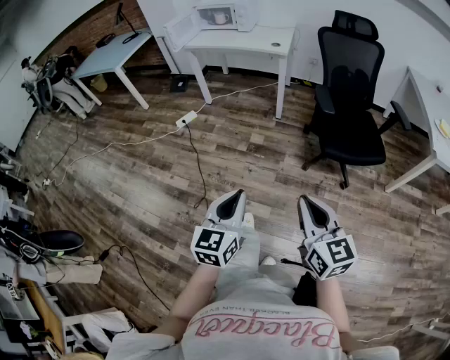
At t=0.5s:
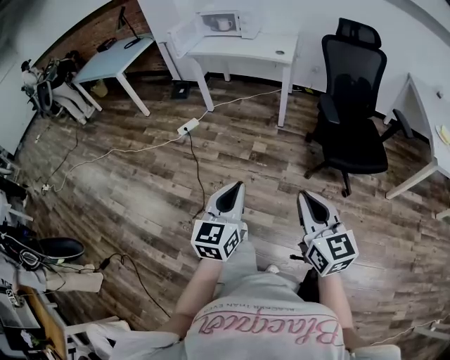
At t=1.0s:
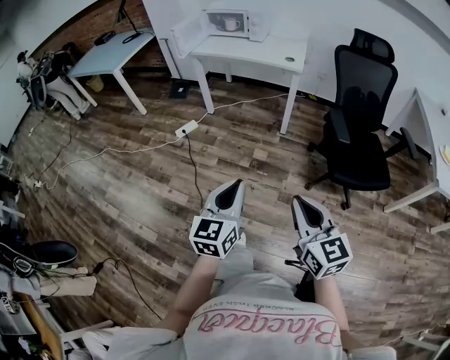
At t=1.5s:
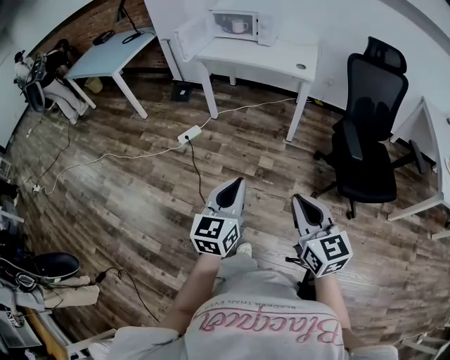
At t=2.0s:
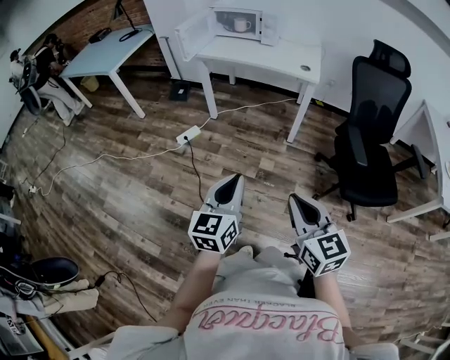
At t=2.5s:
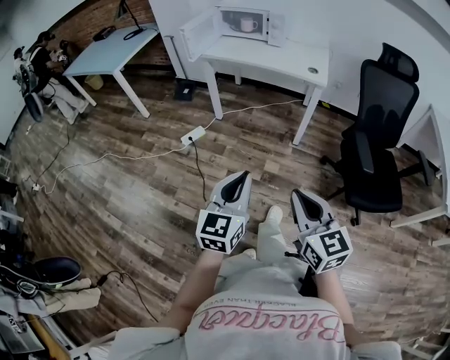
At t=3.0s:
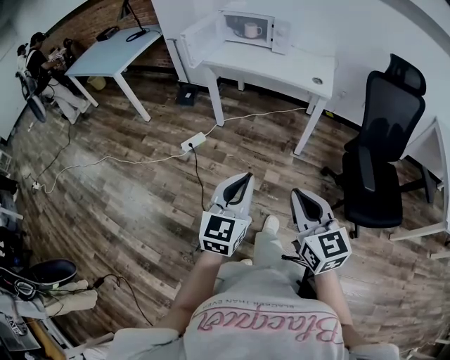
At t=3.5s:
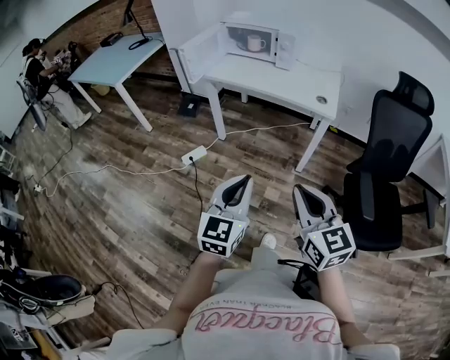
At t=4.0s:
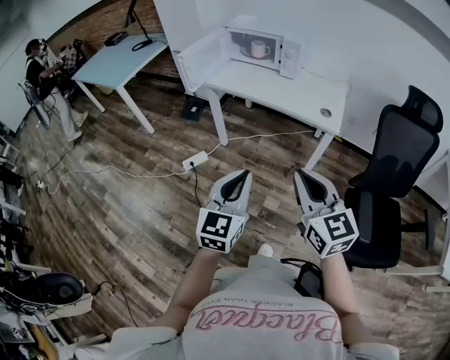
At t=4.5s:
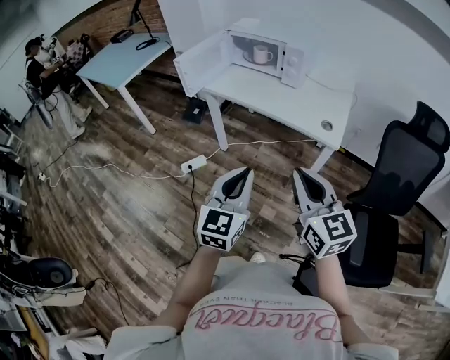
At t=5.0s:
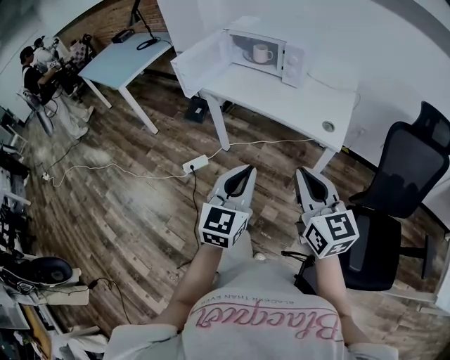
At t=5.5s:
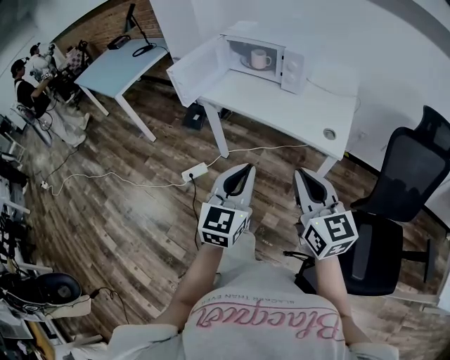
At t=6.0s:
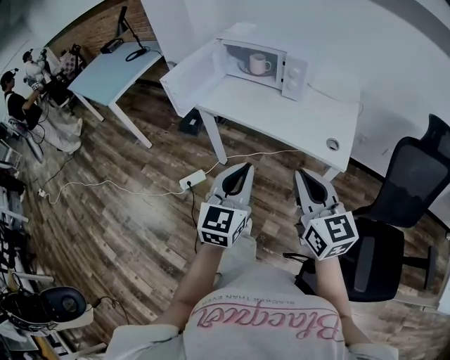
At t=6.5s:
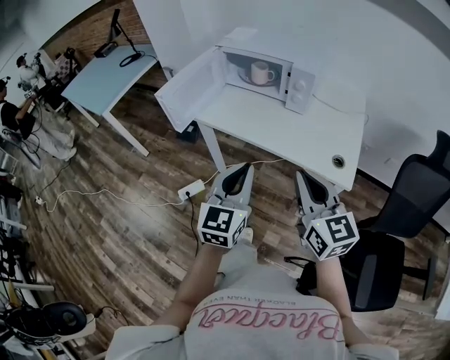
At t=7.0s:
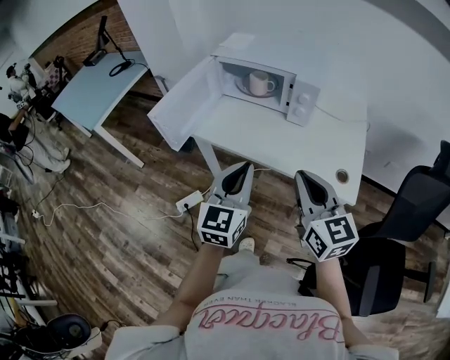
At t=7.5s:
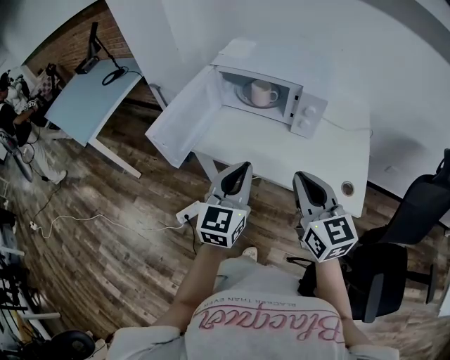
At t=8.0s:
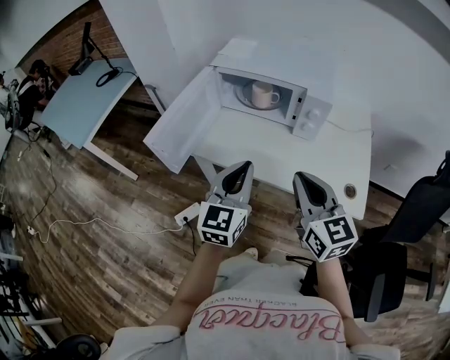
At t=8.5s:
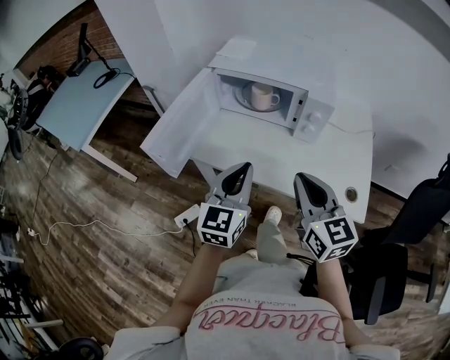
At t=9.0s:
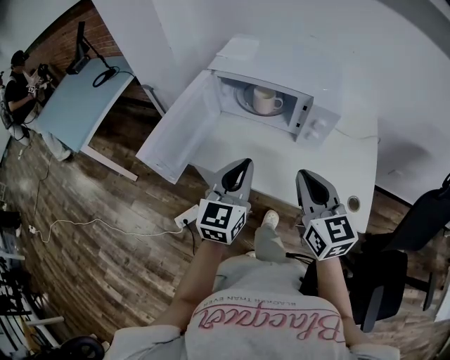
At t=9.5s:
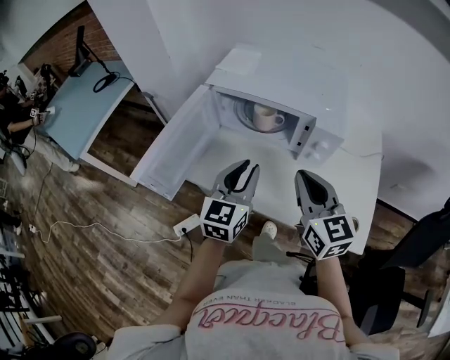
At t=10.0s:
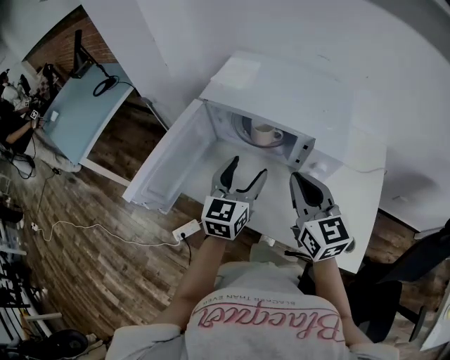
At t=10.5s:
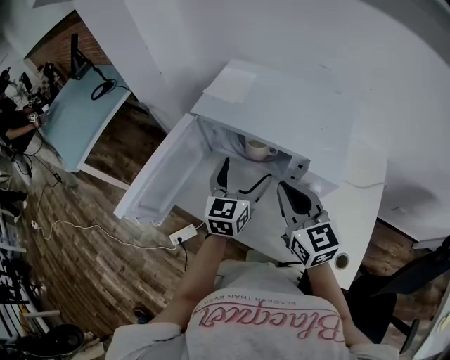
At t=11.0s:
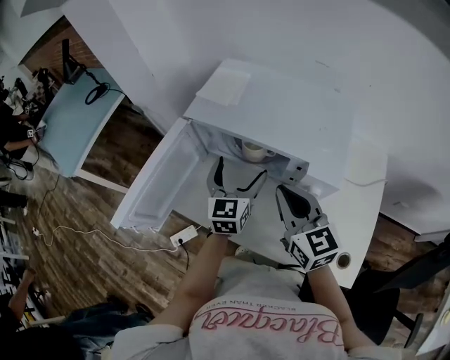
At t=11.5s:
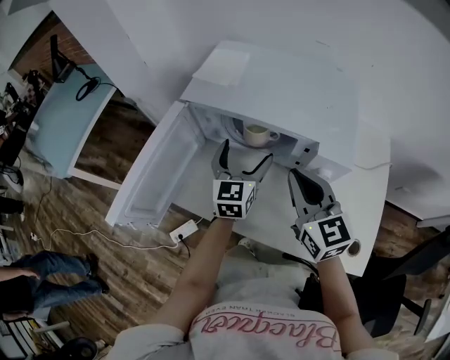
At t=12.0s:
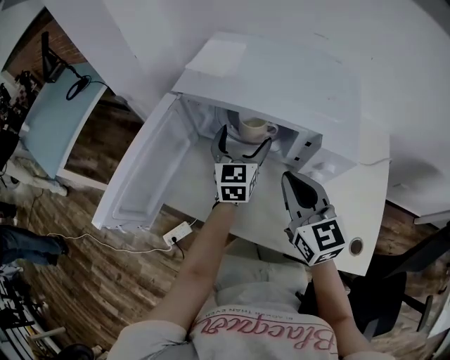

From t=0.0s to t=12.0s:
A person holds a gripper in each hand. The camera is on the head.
From t=0.0s to t=2.0s: The grippers both shift forward and to the left by approximately 35 cm.
From t=2.0s to t=4.0s: Both grippers move forward, about 30 cm.
From t=4.0s to t=6.0s: Both grippers move forward, approximately 20 cm.
From t=6.0s to t=8.0s: The two grippers go some 25 cm forward.
From t=8.0s to t=10.0s: Both grippers move forward, some 20 cm. The left gripper opens its fingers.
From t=10.0s to t=12.0s: The right gripper heads downward, covering about 5 cm; the left gripper shifts some 15 cm forward and downward, and opens its fingers.

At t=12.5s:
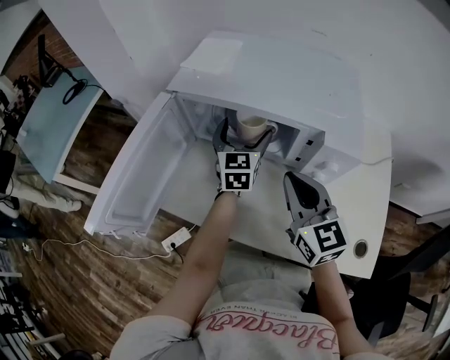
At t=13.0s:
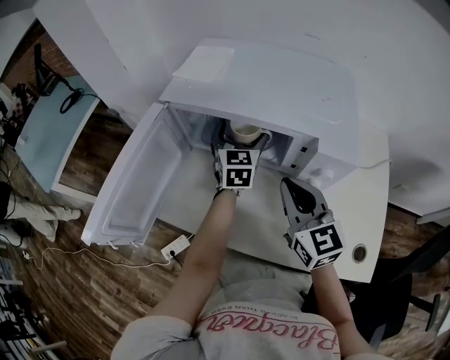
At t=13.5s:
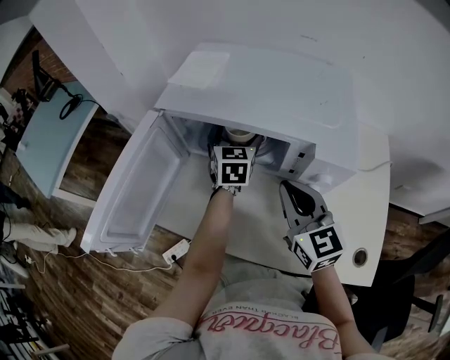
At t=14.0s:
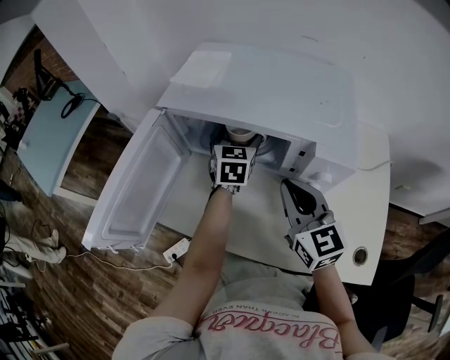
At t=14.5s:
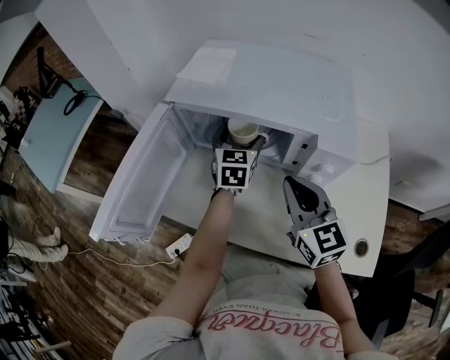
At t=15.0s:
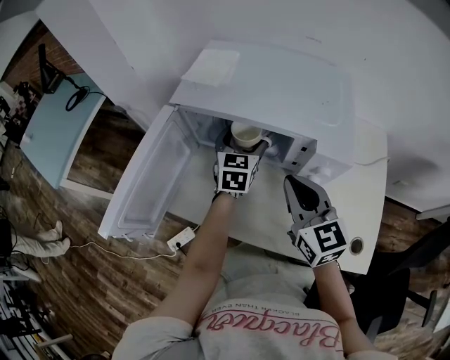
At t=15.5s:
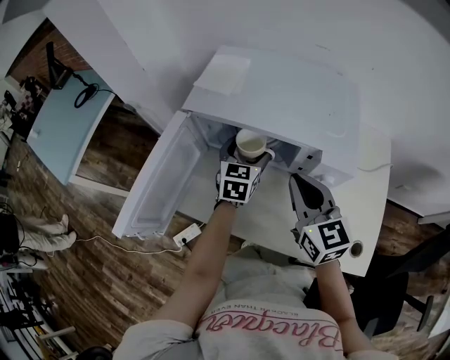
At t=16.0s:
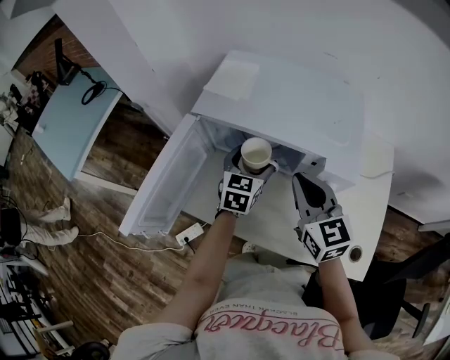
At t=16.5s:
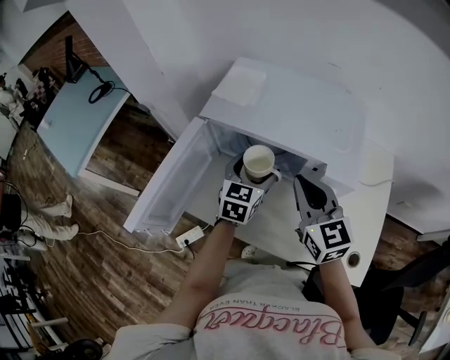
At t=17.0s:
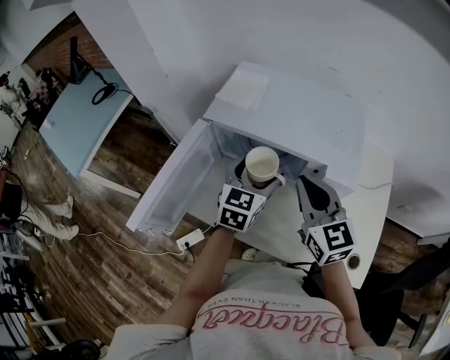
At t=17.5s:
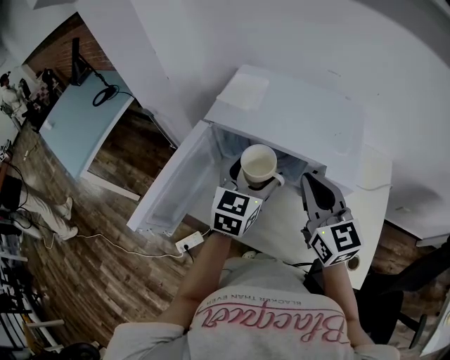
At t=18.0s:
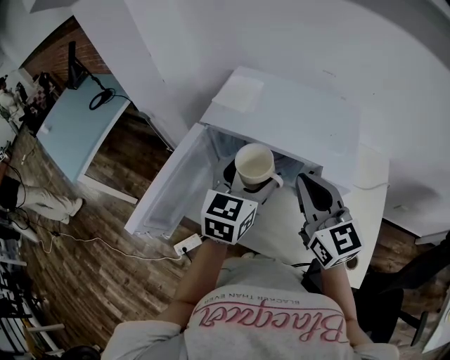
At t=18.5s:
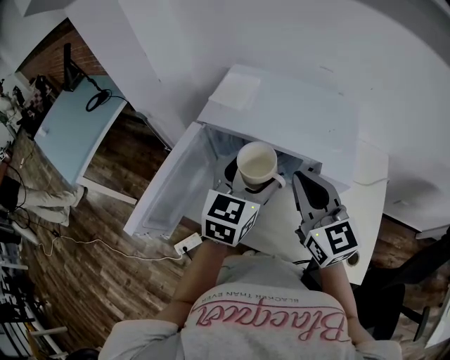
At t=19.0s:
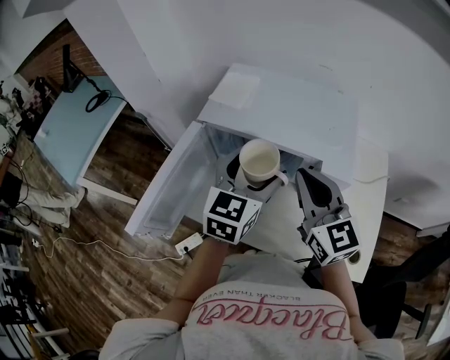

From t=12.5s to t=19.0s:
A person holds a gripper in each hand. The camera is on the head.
From t=12.5s to t=14.5s: The grippers make only small movements.
From t=14.5s to t=17.0s: The right gripper heads upward, covering approximately 10 cm; the left gripper is displaced backward and upward by roughly 15 cm.
From t=17.0s to t=19.0s: The left gripper goes approximately 10 cm upward.

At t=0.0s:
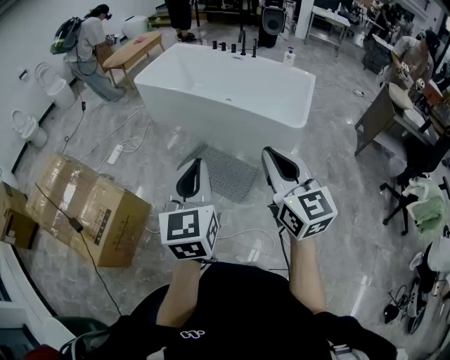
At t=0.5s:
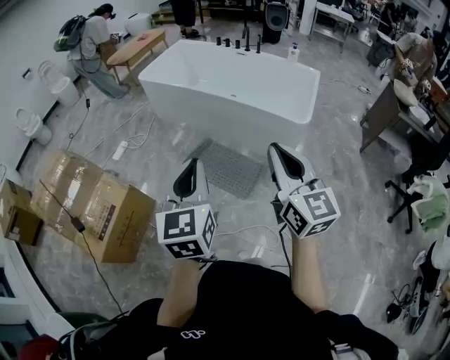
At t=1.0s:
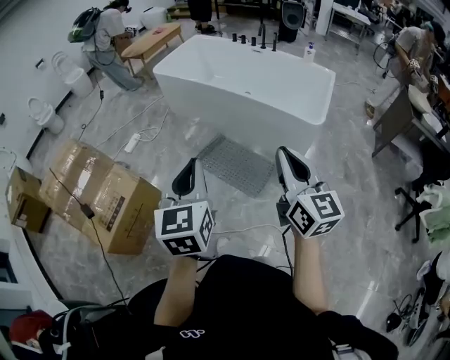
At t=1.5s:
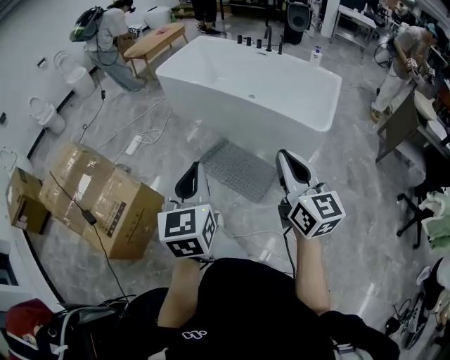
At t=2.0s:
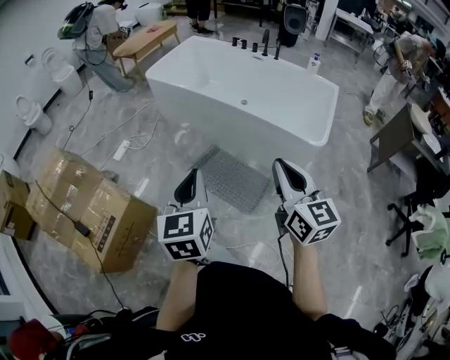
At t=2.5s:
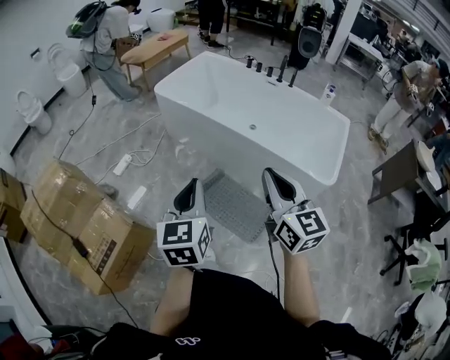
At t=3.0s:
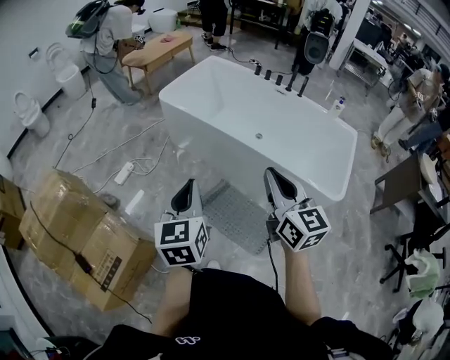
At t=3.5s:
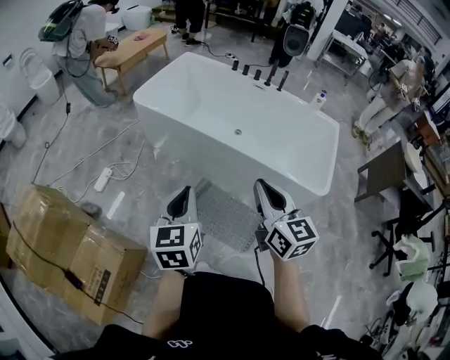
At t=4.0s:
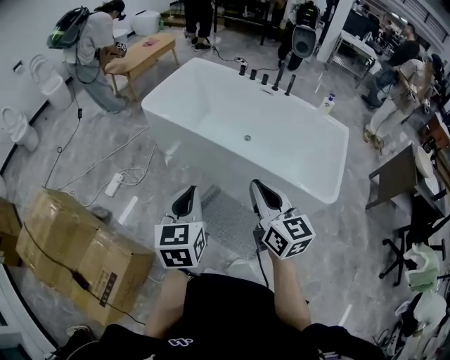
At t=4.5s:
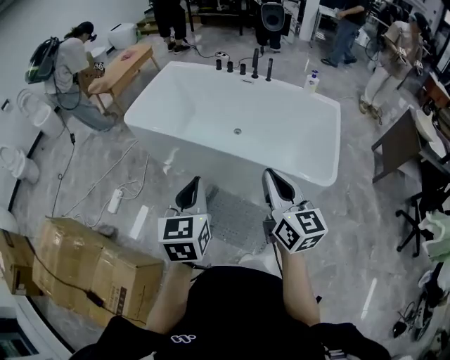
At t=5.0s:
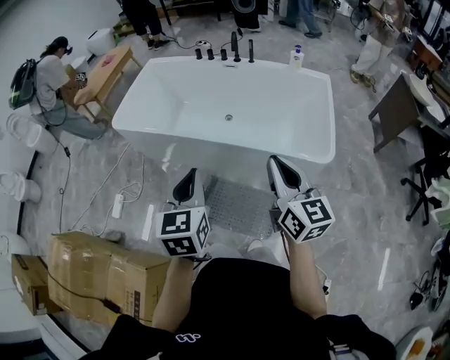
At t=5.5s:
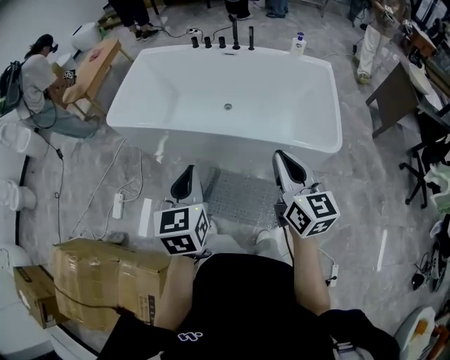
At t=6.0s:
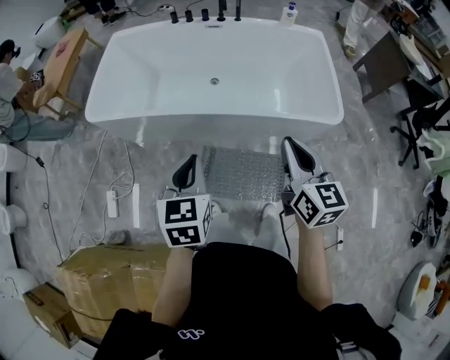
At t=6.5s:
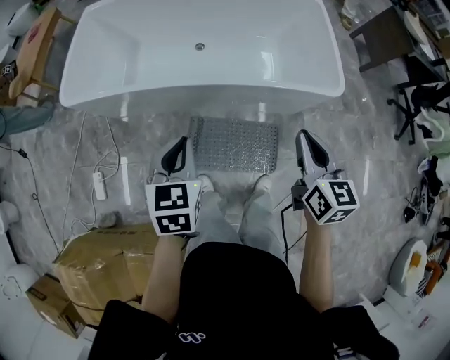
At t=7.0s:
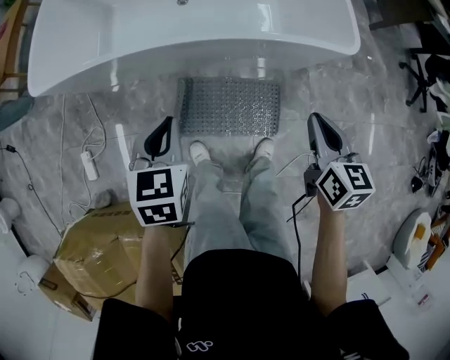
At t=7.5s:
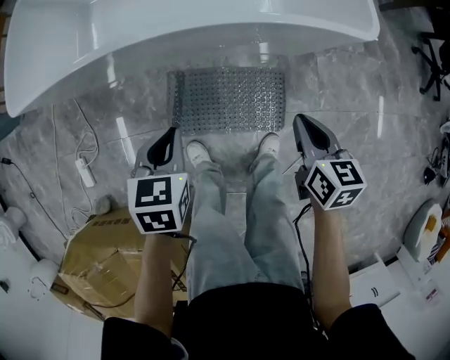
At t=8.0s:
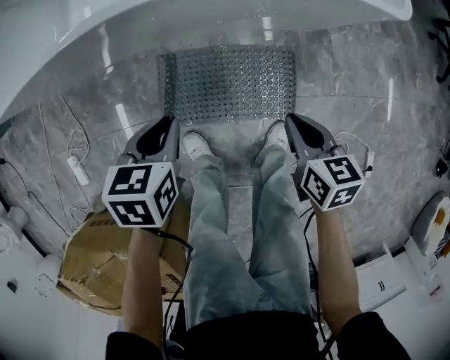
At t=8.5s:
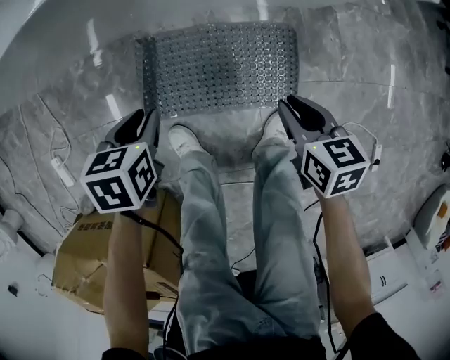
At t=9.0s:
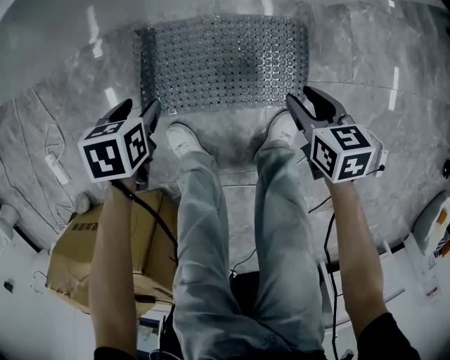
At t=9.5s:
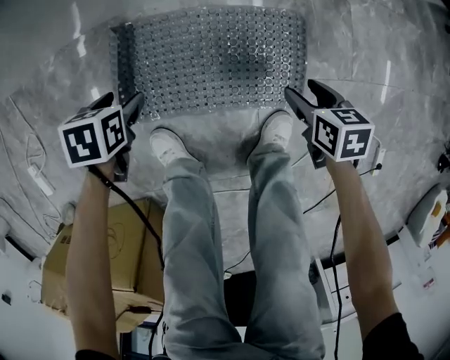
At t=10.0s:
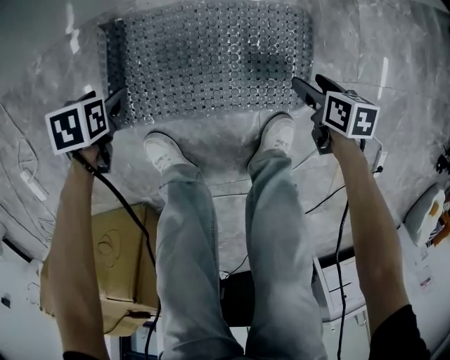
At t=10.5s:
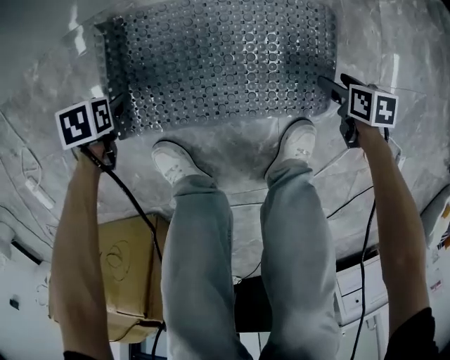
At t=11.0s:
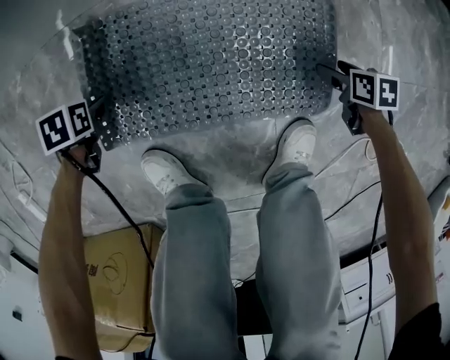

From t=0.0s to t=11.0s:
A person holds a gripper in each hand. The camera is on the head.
From t=0.0s to t=2.0s: The grippers both shift forward by approximately 15 cm.
From t=2.0s to t=3.5s: The right gripper goes about 30 cm forward and to the left. Meanwhile the left gripper is displaced forward by about 30 cm.
From t=3.5s to t=5.5s: The right gripper heads to the right and forward, covering some 15 cm, while the left gripper shifts roughly 15 cm forward and to the right.
From t=5.5s to t=7.5s: Both grippers move downward, roughly 35 cm. The right gripper points its fingers some 40 degrees further downward; the left gripper tips its fingers downward by approximately 30 degrees.
From t=7.5s to t=9.0s: Both grippers travel together downward, roughly 35 cm. The left gripper rotates approximately 20 degrees, and opens up. The right gripper opens.
From t=9.0s to t=11.0s: Both grippers travel together downward, about 30 cm. The right gripper changes its angle by roughly 20 degrees, and opens up.
